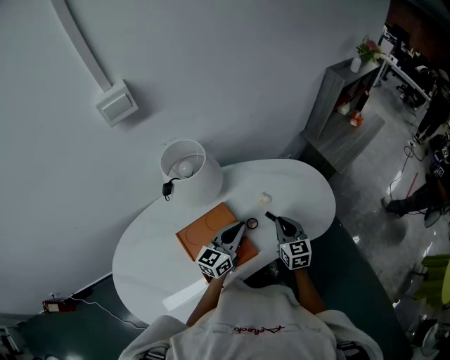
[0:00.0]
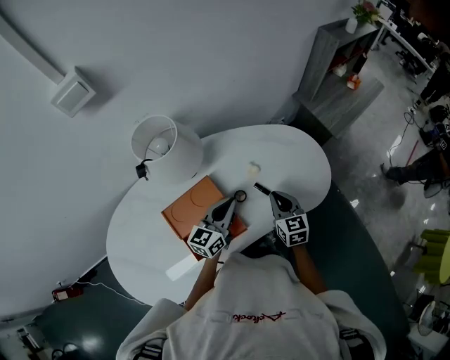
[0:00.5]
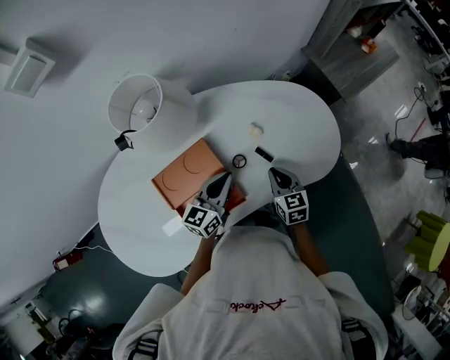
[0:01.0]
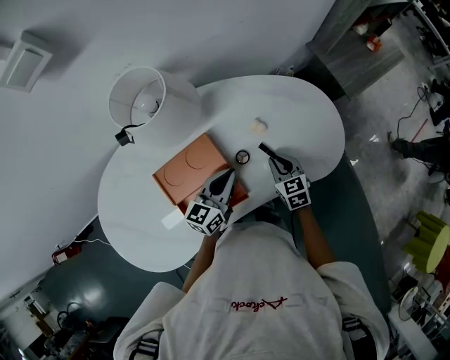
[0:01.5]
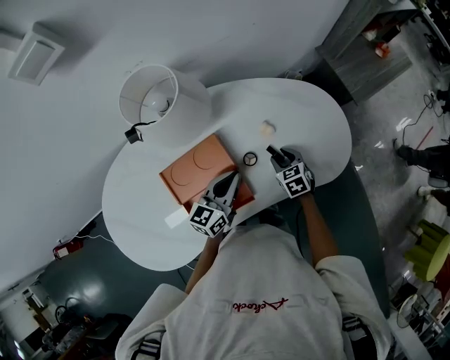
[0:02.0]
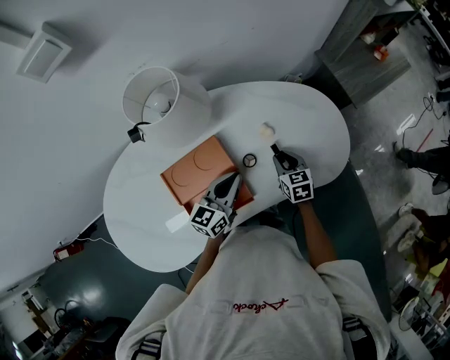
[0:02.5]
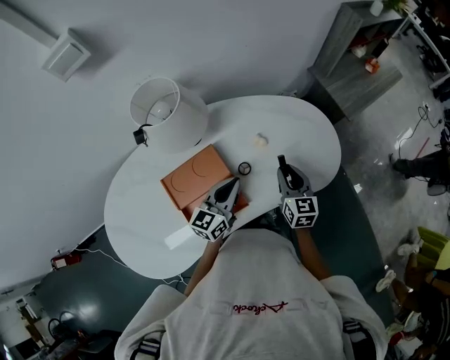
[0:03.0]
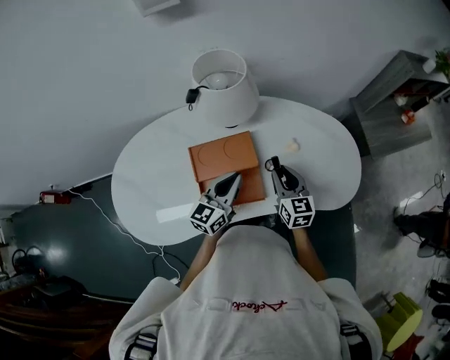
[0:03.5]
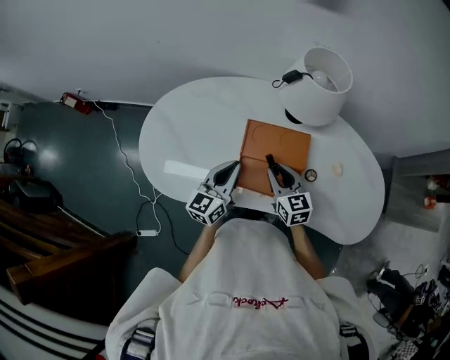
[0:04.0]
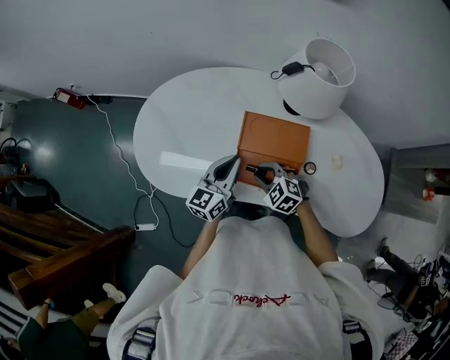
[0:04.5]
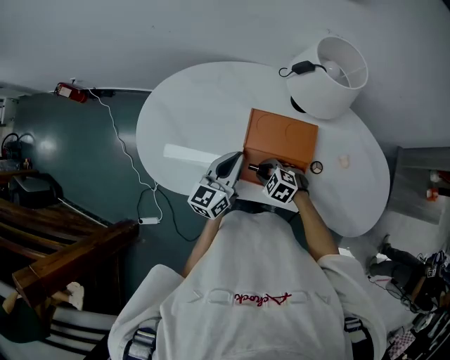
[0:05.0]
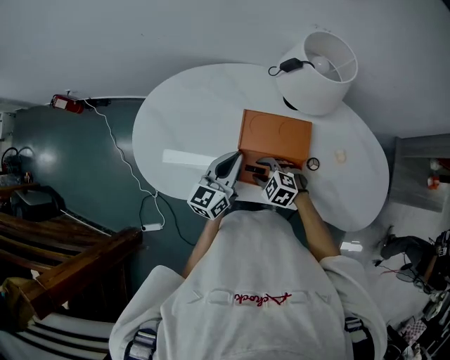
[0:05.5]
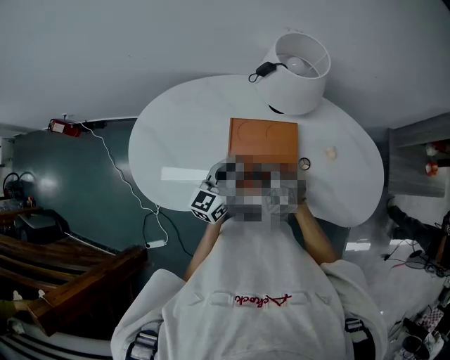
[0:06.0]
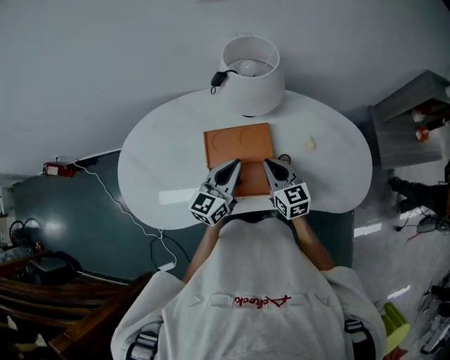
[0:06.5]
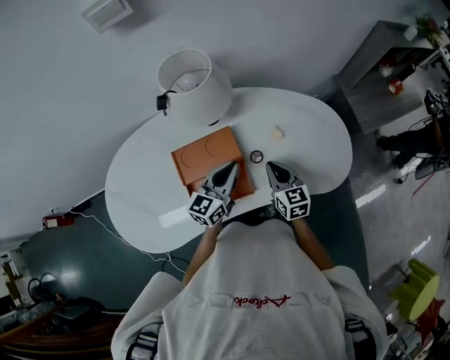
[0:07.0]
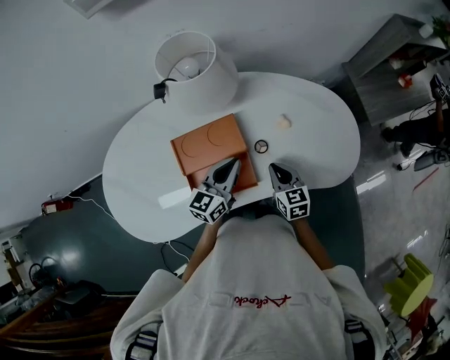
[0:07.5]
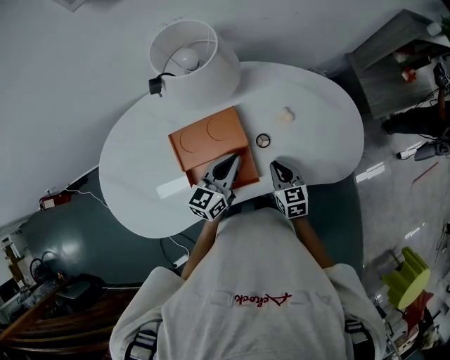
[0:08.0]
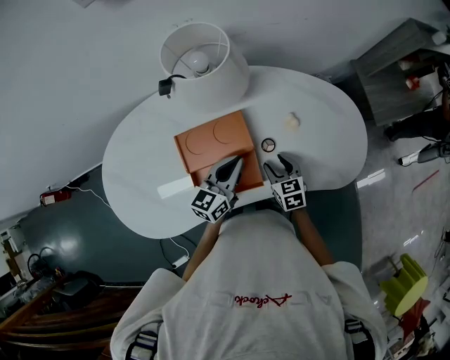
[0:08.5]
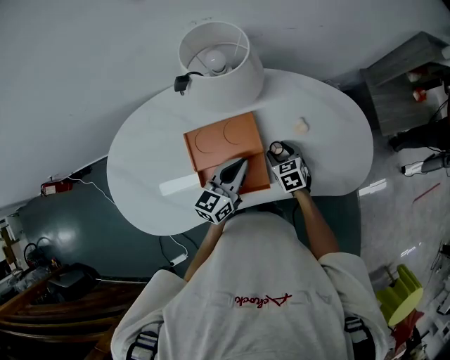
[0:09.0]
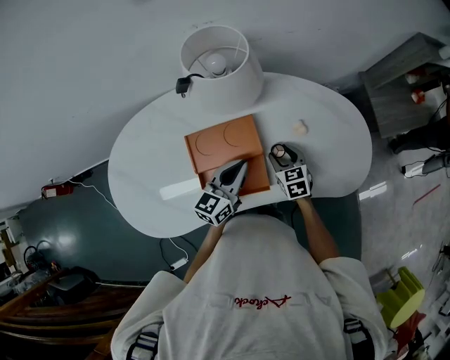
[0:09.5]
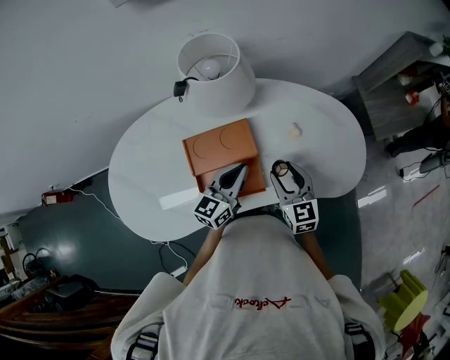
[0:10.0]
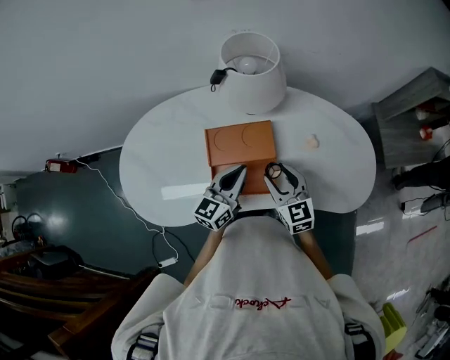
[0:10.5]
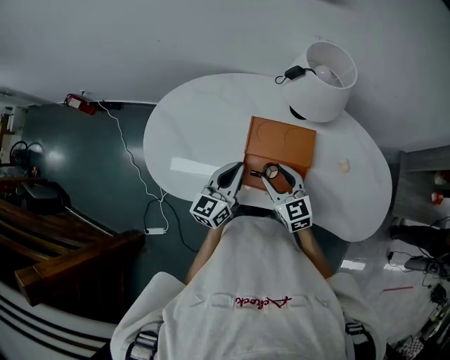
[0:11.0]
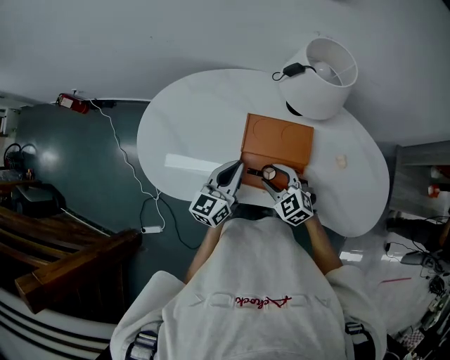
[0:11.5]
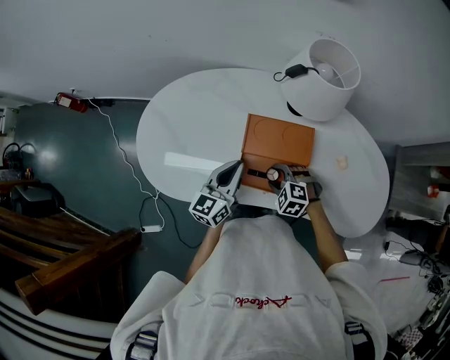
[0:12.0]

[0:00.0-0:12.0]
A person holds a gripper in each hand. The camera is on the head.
0:00.0 to 0:02.0: The left gripper goes about 10 cm downward; the right gripper goes about 15 cm downward, turns by some 30 degrees, and opens up.
0:02.0 to 0:04.0: The right gripper ends up roughly 30 cm from where it was, and rotates about 40 degrees, while the left gripper changes place by roughly 25 cm, and swivels some 40 degrees.
0:04.0 to 0:06.0: The right gripper rotates around the line of its fingers by roughly 40 degrees, counterclockwise from behind.
0:06.0 to 0:08.0: The left gripper moves about 15 cm, and swivels approximately 30 degrees, while the right gripper shifts by roughly 20 cm, and rolls clockwise, seen from behind, by roughly 60 degrees.
0:08.0 to 0:10.0: The right gripper is displaced upward by approximately 10 cm, and opens.
0:10.0 to 0:12.0: The left gripper shifts by roughly 20 cm, and swivels some 30 degrees, while the right gripper moves about 20 cm, and points its fingers some 40 degrees further downward.

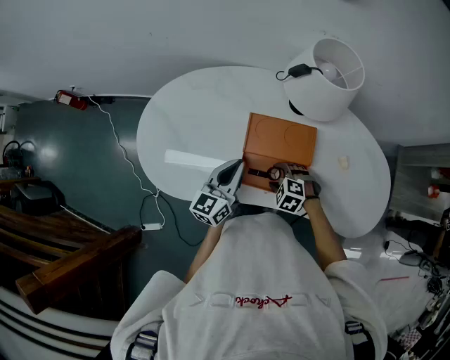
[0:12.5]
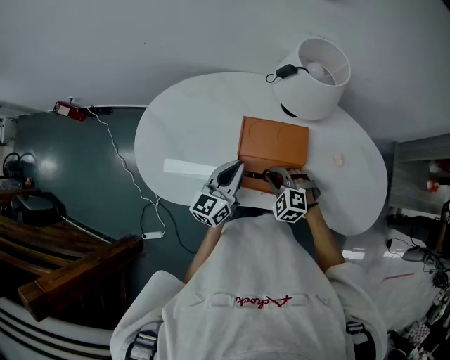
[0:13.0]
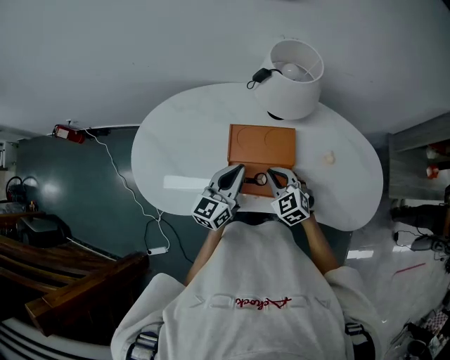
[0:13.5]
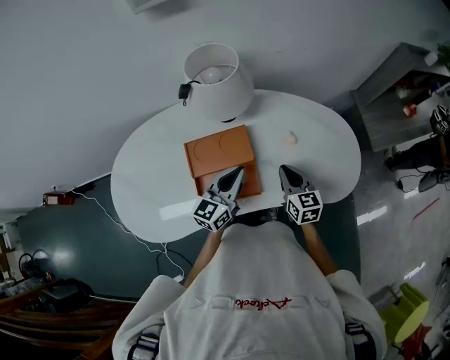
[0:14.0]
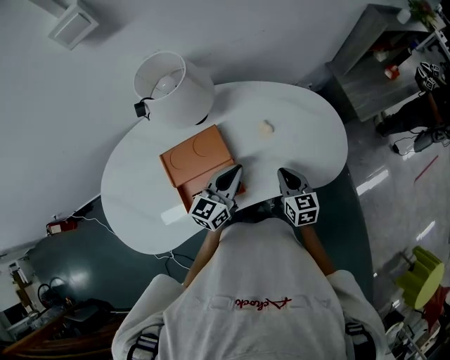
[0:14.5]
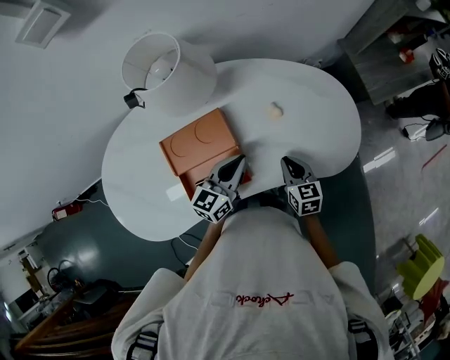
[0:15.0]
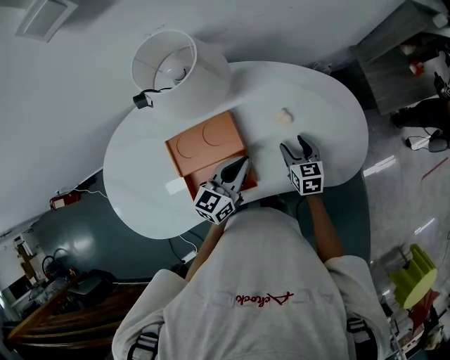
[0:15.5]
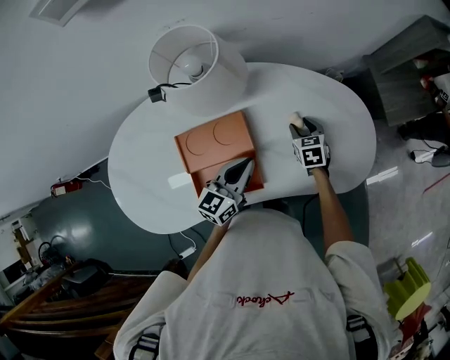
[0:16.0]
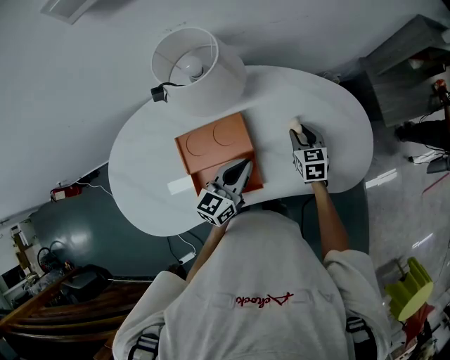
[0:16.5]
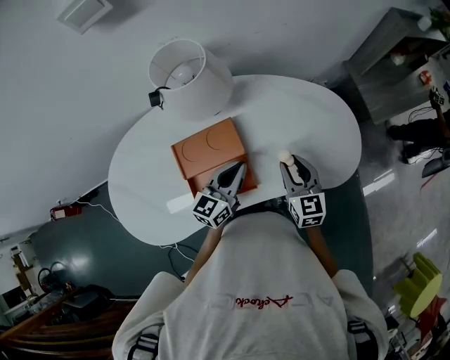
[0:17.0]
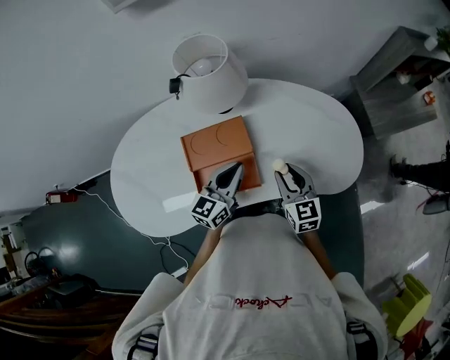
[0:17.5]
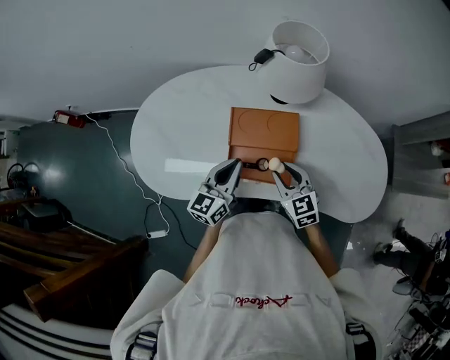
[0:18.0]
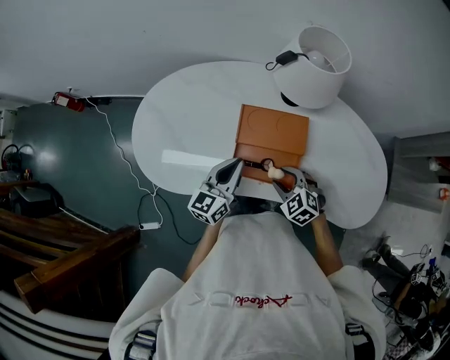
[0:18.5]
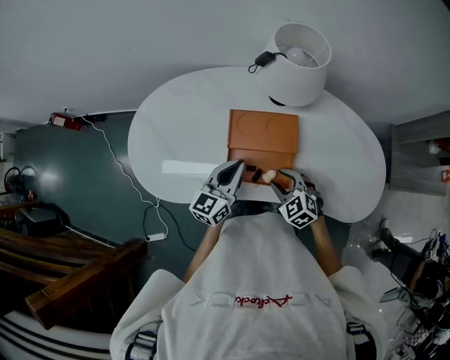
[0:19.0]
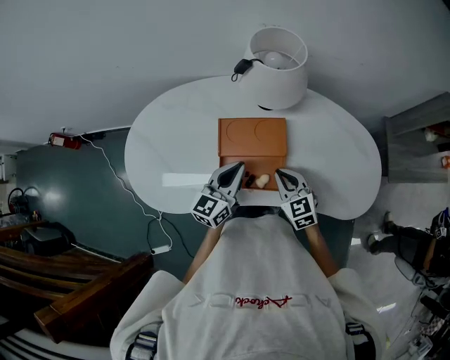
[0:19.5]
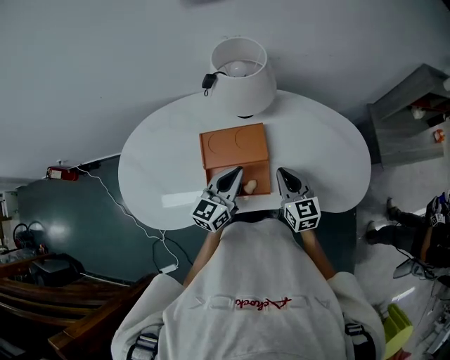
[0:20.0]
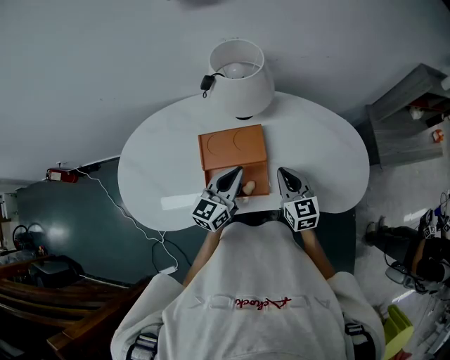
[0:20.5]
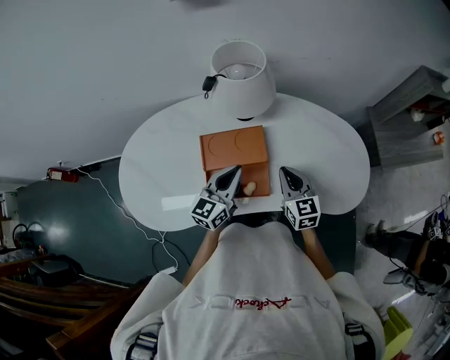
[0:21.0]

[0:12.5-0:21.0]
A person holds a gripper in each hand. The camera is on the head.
0:12.5 to 0:14.5: The left gripper moves approximately 25 cm, and swivels approximately 40 degrees. The right gripper moves some 30 cm, rolls clockwise, seen from behind, by about 80 degrees, and closes its fingers.
0:14.5 to 0:16.5: The right gripper travels forward by approximately 15 cm, and opens up; the left gripper changes place by some 5 cm.
0:16.5 to 0:19.0: The left gripper ends up roughly 15 cm from where it was, and changes its angle by some 30 degrees, while the right gripper goes upward and returns, some 10 cm each way, and twists some 50 degrees counterclockwise, seen from behind.
0:19.0 to 0:21.0: The left gripper travels to the right by some 10 cm. Meanwhile the right gripper goes approximately 15 cm to the right, upward and forward, swivels roughly 50 degrees, and closes up.

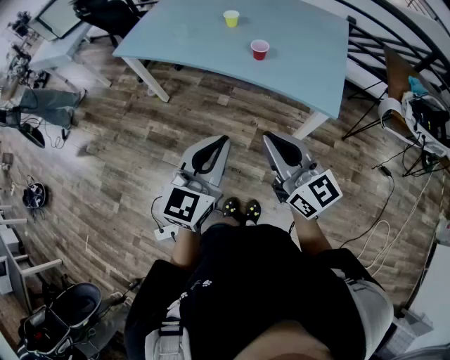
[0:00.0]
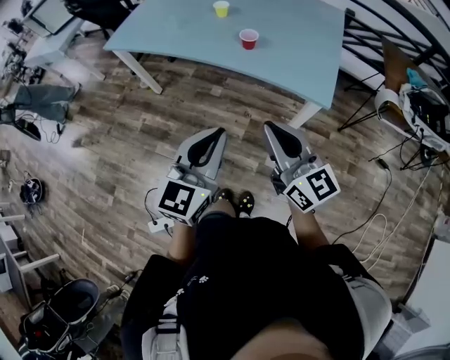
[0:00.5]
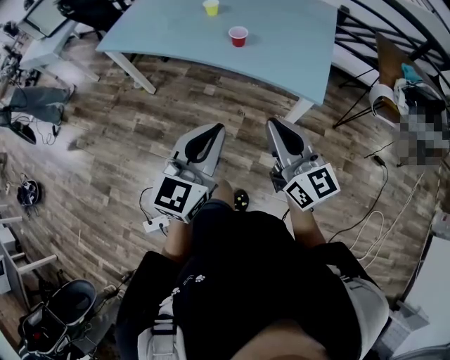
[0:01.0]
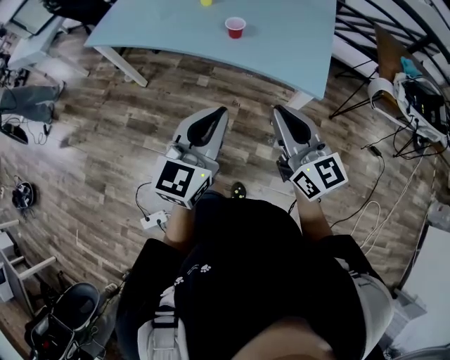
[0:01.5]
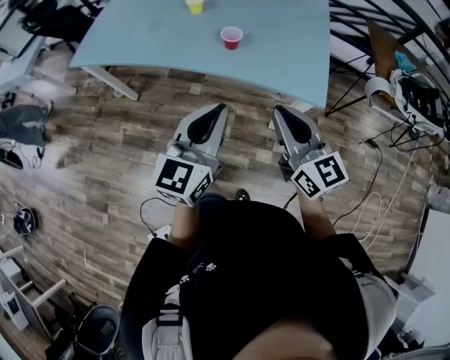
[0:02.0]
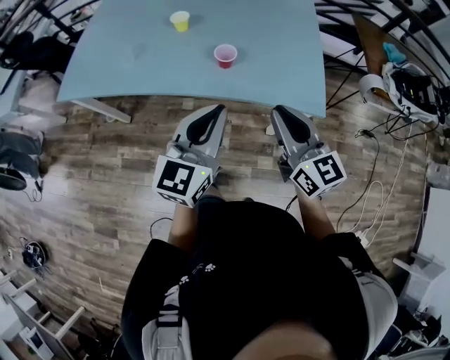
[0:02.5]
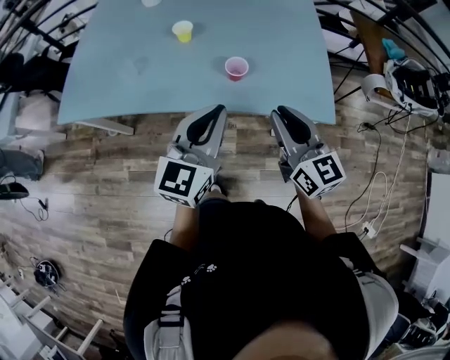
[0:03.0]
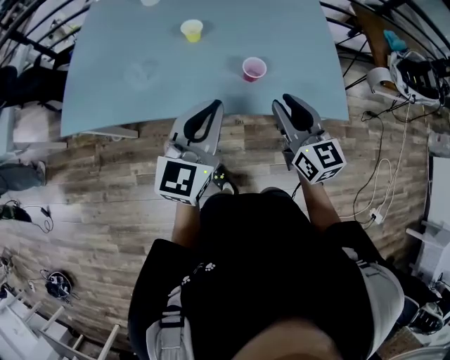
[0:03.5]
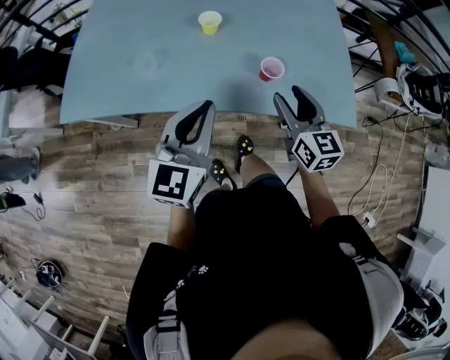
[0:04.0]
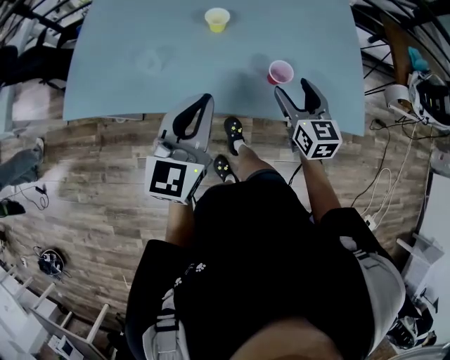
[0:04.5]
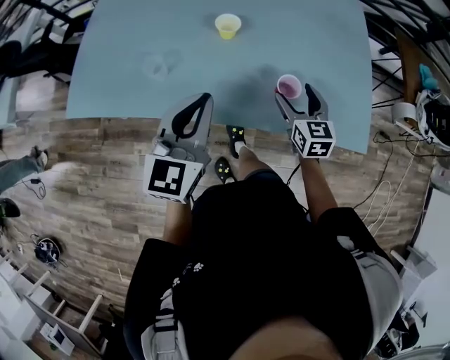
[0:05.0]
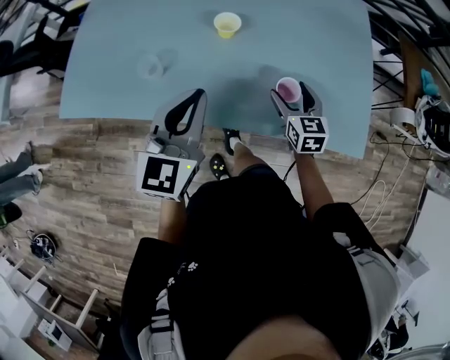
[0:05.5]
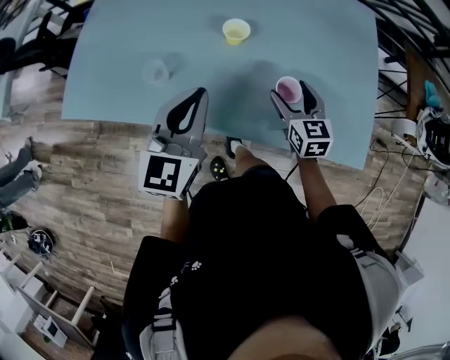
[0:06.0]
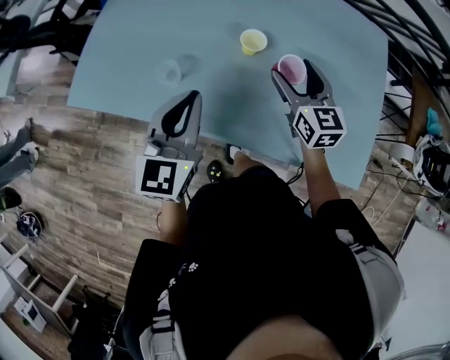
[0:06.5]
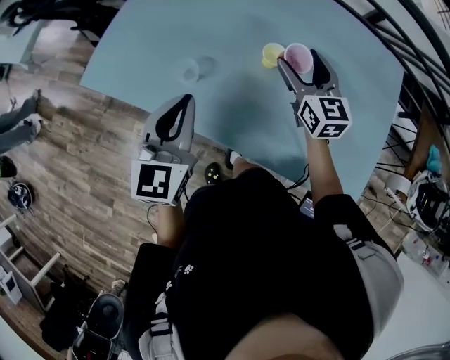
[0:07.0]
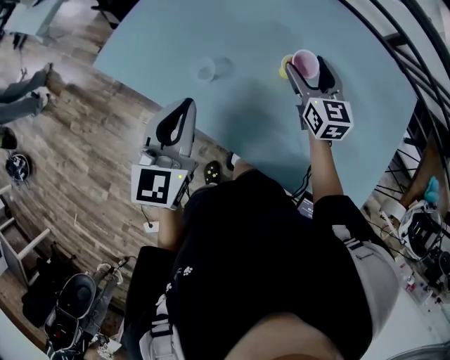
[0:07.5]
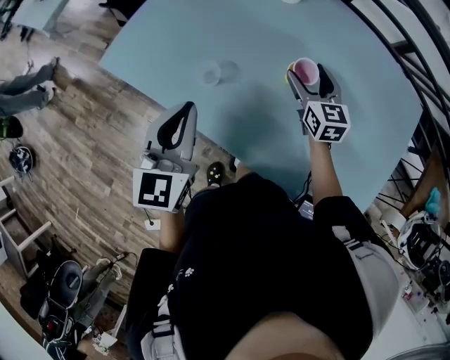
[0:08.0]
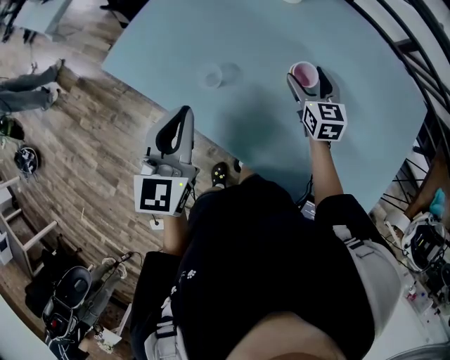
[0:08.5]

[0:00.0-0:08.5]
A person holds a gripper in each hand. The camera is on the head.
0:00.0 to 0:02.0: The right gripper is displaced forward and to the right by about 15 cm; the left gripper heads forward, covering about 15 cm.
0:02.0 to 0:04.0: The right gripper is displaced forward and to the left by about 25 cm, rotates some 30 degrees, and opens up. Meanwhile the left gripper moves to the left and forward, about 30 cm.
0:04.0 to 0:06.5: The left gripper is displaced forward and to the left by roughly 15 cm; the right gripper is displaced forward by roughly 20 cm, and opens up.
0:06.5 to 0:08.5: The left gripper shifts some 10 cm to the left, and rotates about 20 degrees. The right gripper goes roughly 15 cm forward and downward.
